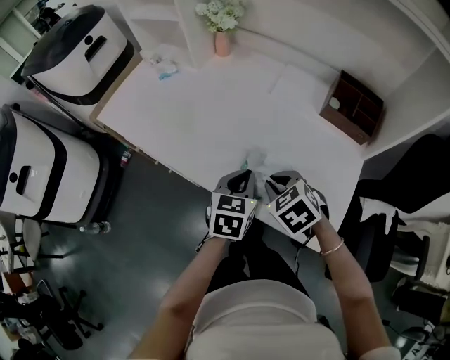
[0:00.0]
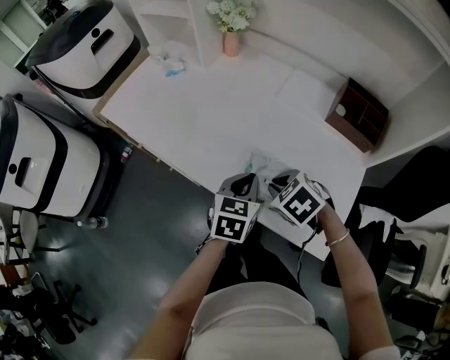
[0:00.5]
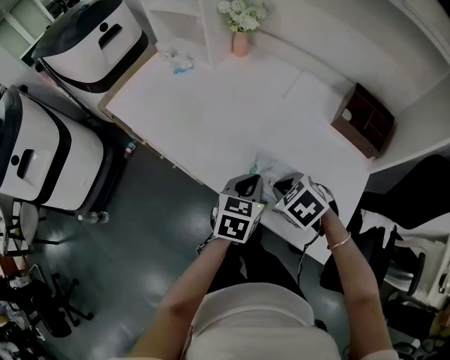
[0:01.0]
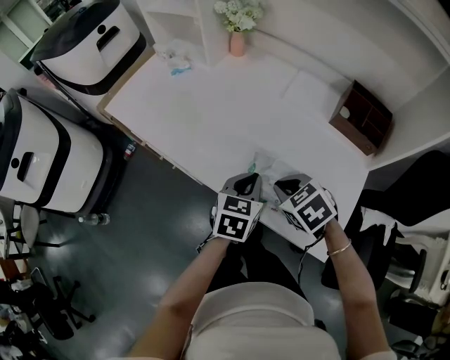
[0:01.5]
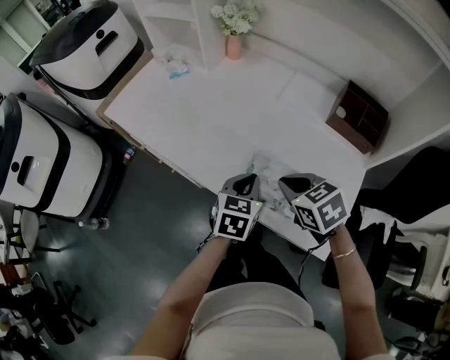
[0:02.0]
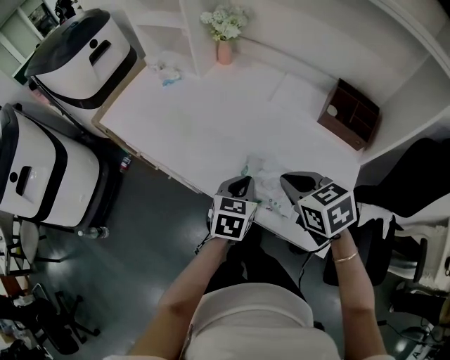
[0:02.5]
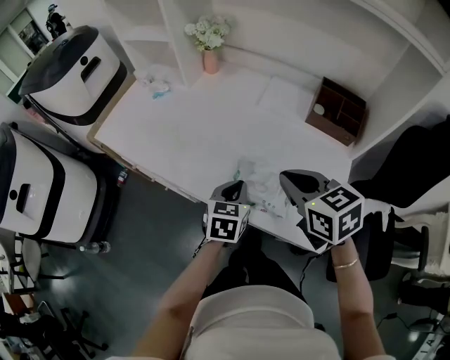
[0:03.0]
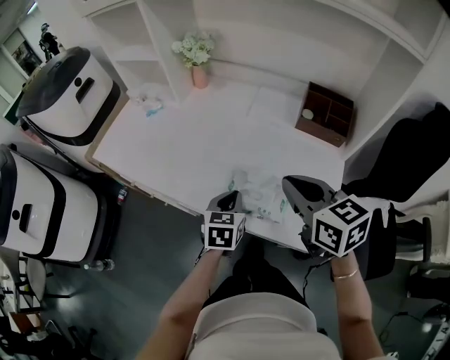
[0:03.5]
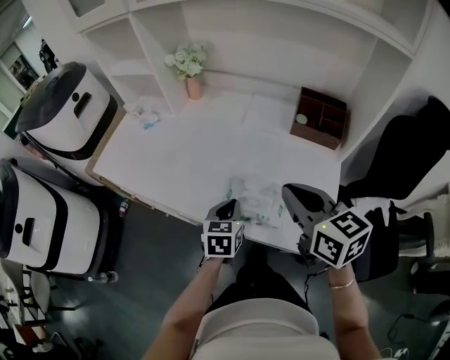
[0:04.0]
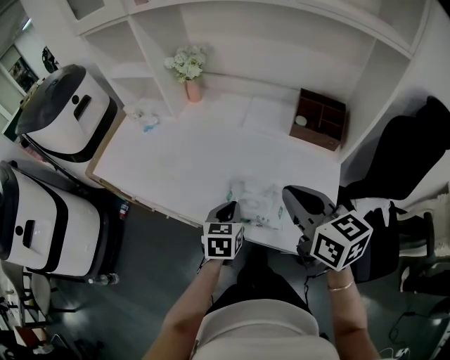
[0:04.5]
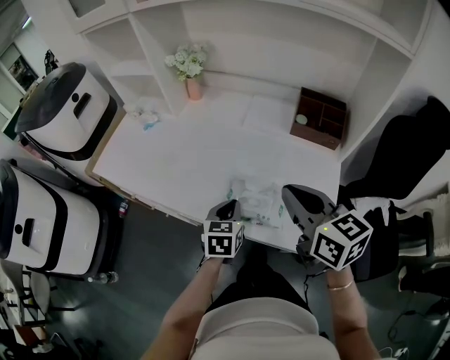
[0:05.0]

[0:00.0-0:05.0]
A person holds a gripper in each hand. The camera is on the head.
0:00.0 to 0:02.5: The right gripper goes about 5 cm upward, and turns by some 20 degrees.
0:02.5 to 0:05.0: The right gripper is displaced upward by approximately 10 cm, and swivels approximately 30 degrees.

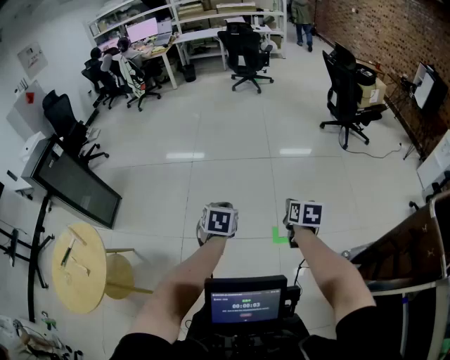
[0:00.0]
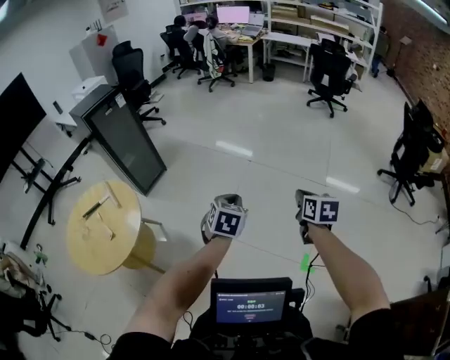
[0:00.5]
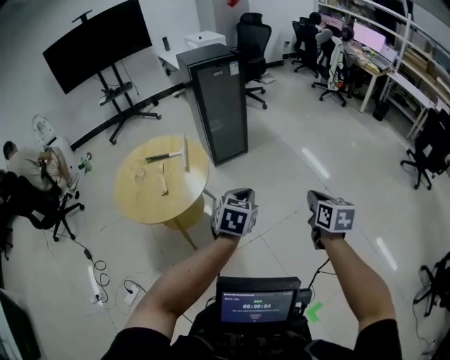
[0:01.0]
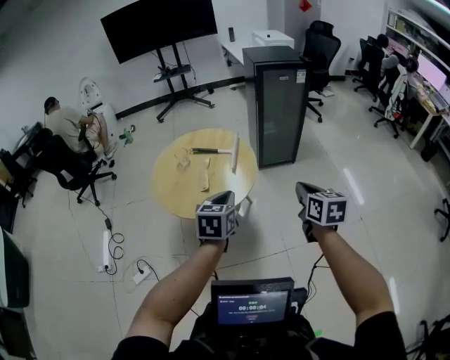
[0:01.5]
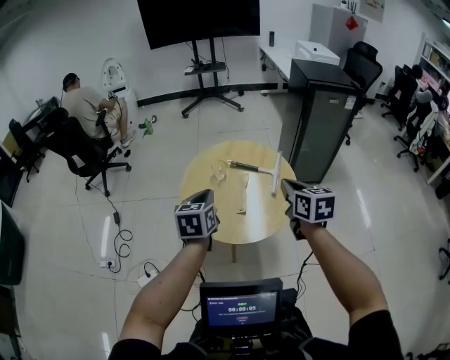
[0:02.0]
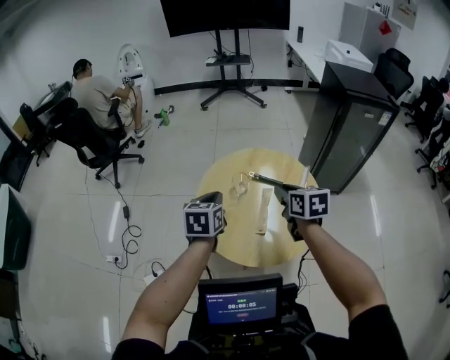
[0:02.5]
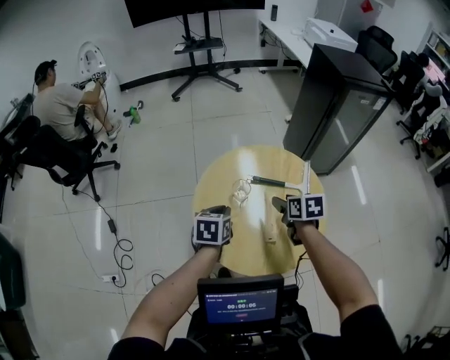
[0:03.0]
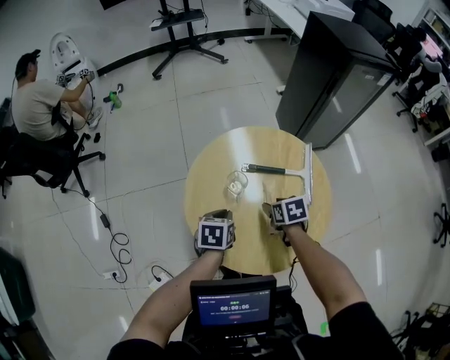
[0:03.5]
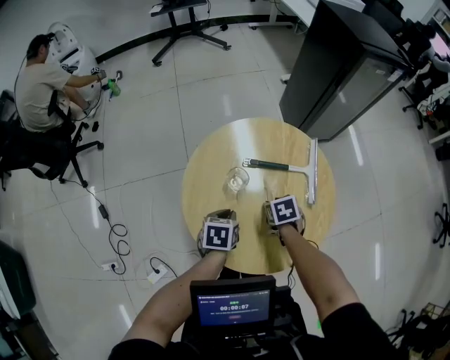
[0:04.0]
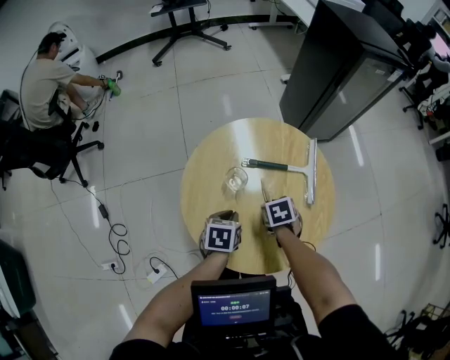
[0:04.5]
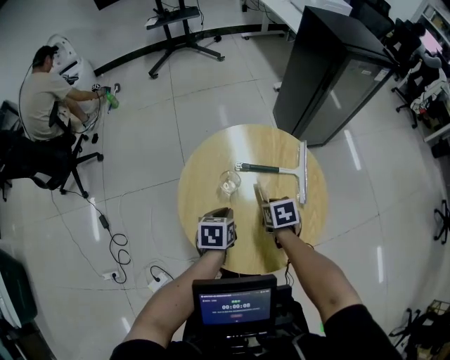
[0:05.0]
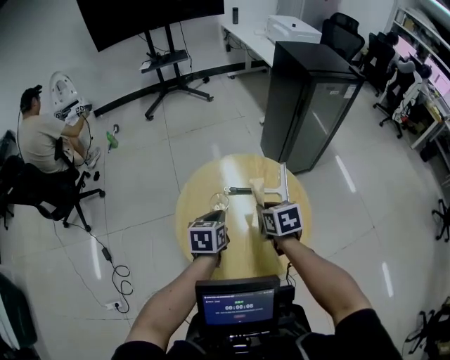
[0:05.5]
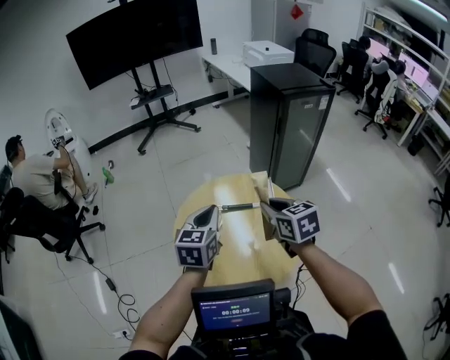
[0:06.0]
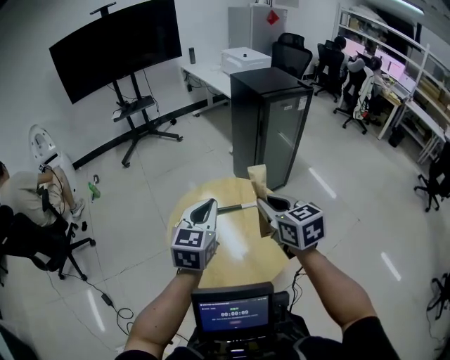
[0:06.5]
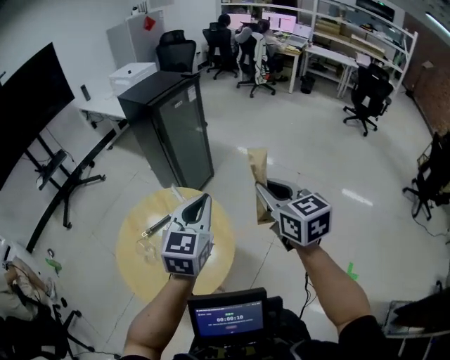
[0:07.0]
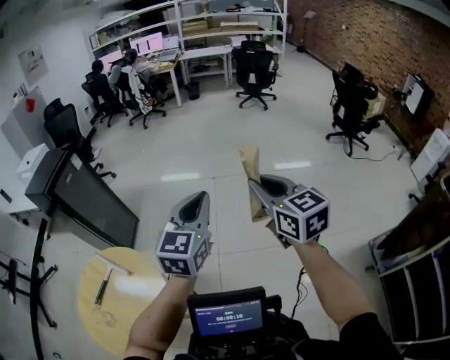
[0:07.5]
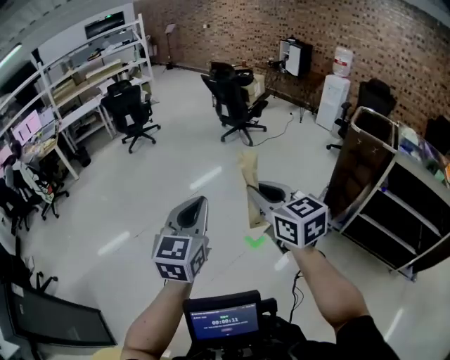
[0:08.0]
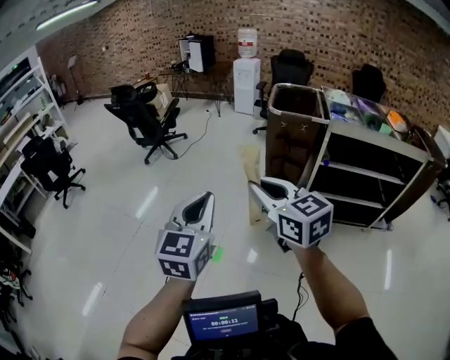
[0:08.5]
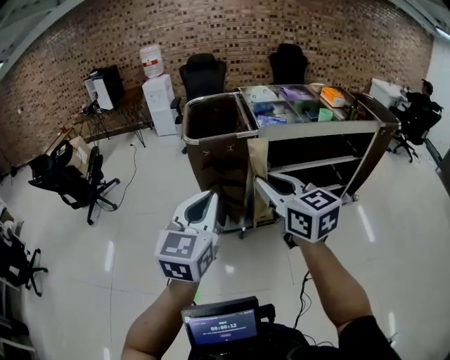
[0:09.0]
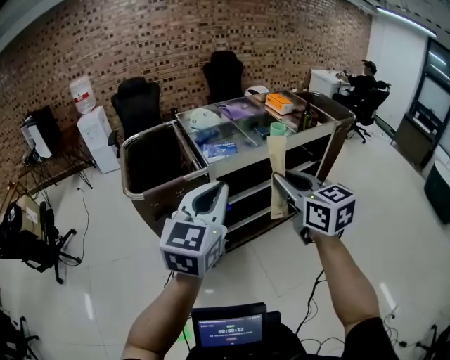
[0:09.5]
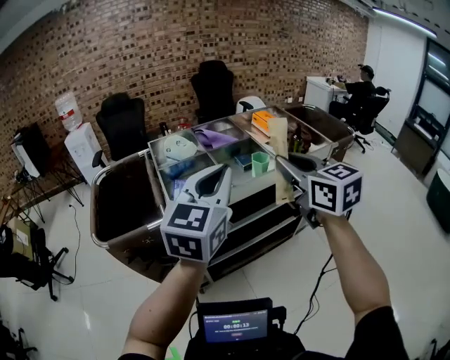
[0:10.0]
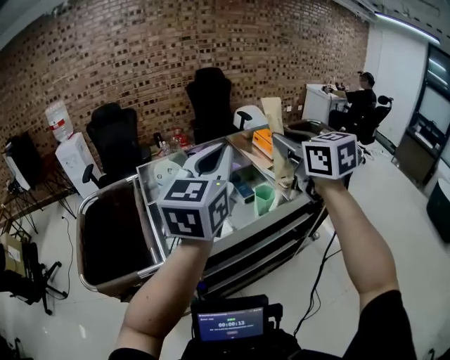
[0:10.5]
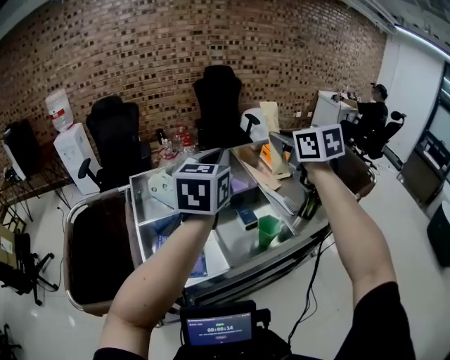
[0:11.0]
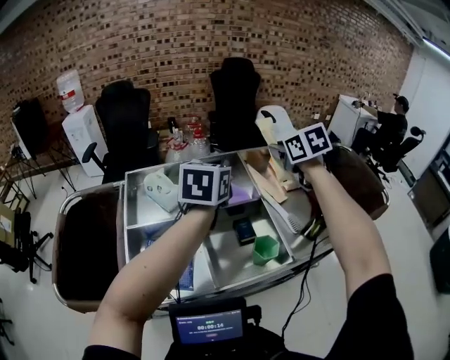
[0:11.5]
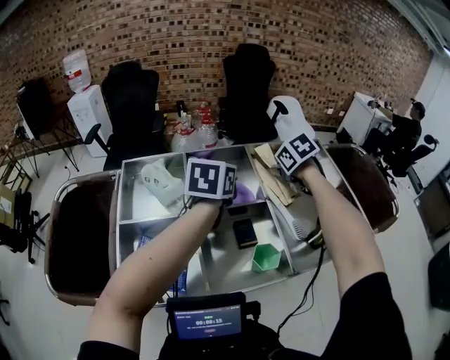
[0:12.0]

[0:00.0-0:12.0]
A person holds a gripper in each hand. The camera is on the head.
0:00.0 to 0:02.0: Both grippers are carried some 1.5 m. The right gripper turns by about 90 degrees, while the left gripper swivels approximately 90 degrees.
0:02.0 to 0:04.0: The pair of grippers is taken forward, some 60 cm. Both grippers travel together downward, approximately 40 cm. The right gripper points its fingers roughly 40 degrees further downward, and opens its fingers. The left gripper changes its angle by approximately 40 degrees.
0:04.0 to 0:06.0: The grippers both shift upward by approximately 40 cm. The right gripper points its fingers some 40 degrees further upward, and closes up; the left gripper points its fingers about 40 degrees further upward.
0:06.0 to 0:08.0: Both grippers are carried some 1.5 m. The left gripper swivels about 110 degrees. Meanwhile the right gripper changes its angle by some 100 degrees.
0:08.0 to 0:10.0: The two grippers travel together, approximately 1.5 m. The right gripper swivels about 80 degrees, while the left gripper rotates some 80 degrees.
0:10.0 to 0:12.0: The two grippers travel together, forward, some 80 cm. The right gripper tips its fingers downward by approximately 50 degrees; the left gripper changes its angle by roughly 40 degrees.

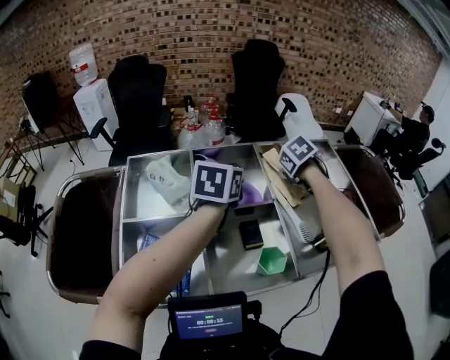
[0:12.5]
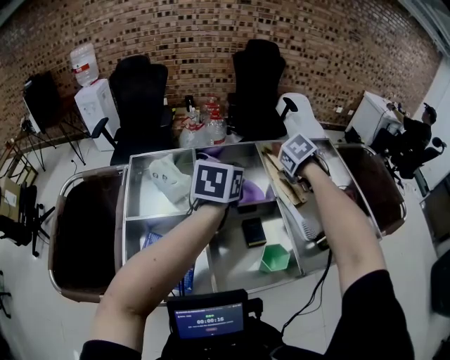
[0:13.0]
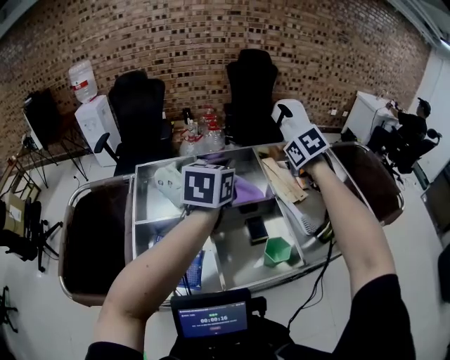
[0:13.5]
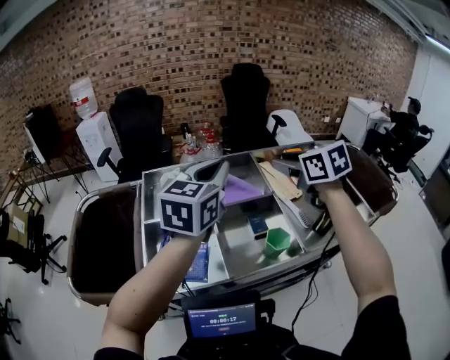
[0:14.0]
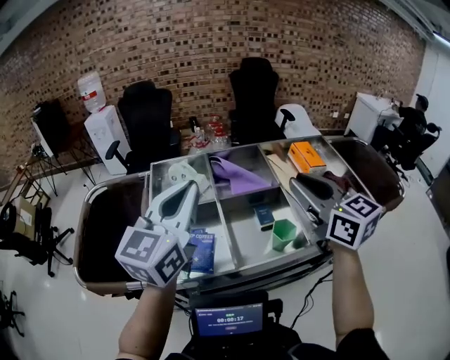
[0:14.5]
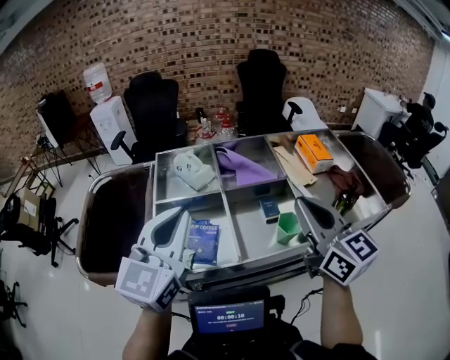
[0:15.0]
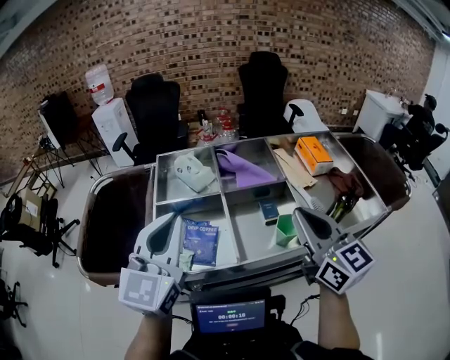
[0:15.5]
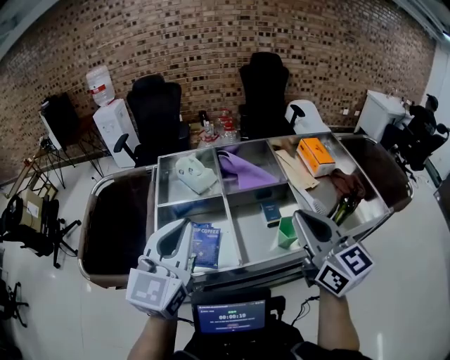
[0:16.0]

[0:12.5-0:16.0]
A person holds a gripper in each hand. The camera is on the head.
0:12.5 to 0:14.5: Both grippers travel together backward and upward, about 40 cm. The left gripper angles its fingers upward, by approximately 30 degrees. Meanwhile the right gripper tips its fingers upward by roughly 70 degrees, and opens and closes again.
0:14.5 to 0:16.0: The right gripper shifts approximately 5 cm backward, and closes. Meanwhile the left gripper heads downward and backward, covering about 10 cm.

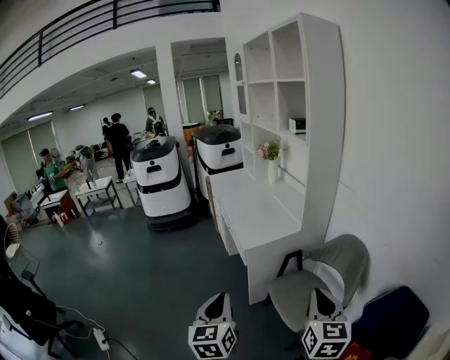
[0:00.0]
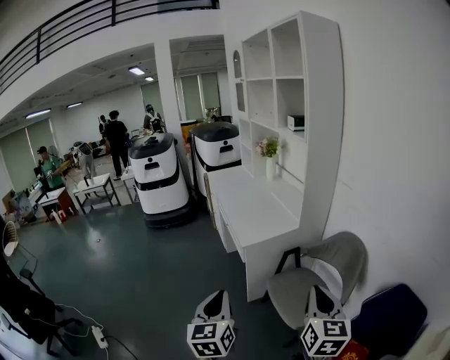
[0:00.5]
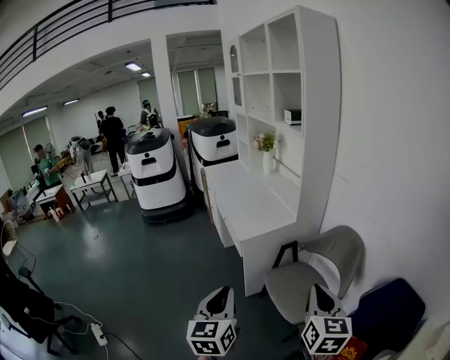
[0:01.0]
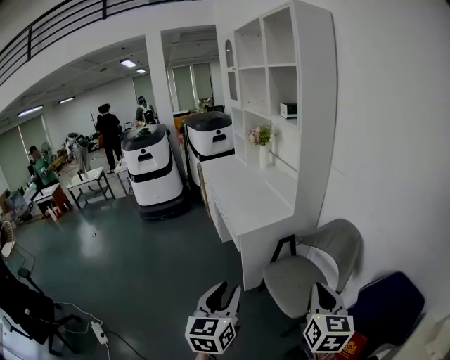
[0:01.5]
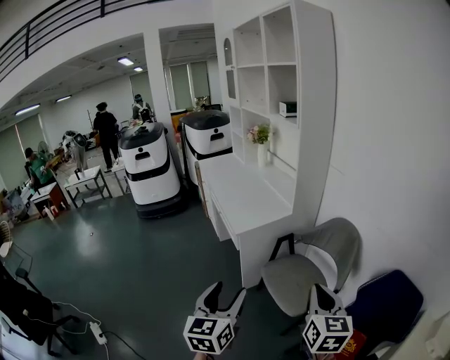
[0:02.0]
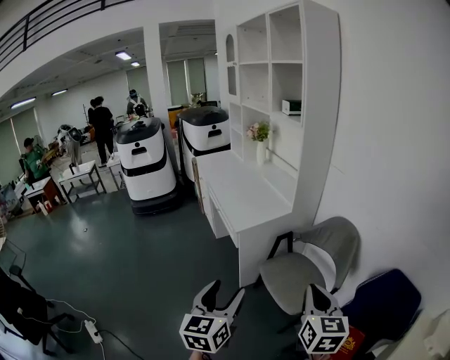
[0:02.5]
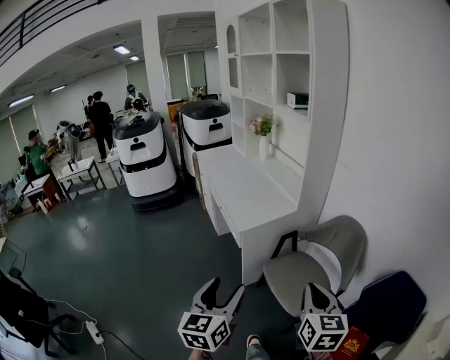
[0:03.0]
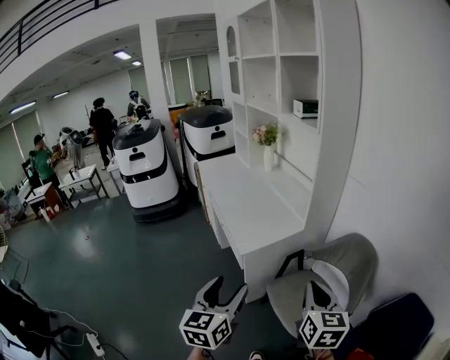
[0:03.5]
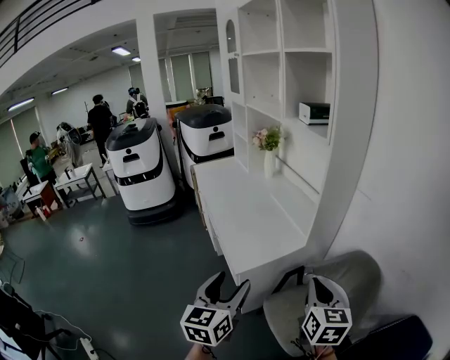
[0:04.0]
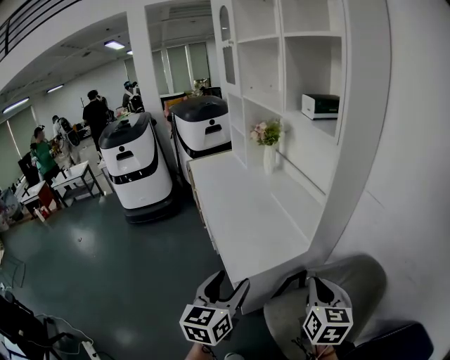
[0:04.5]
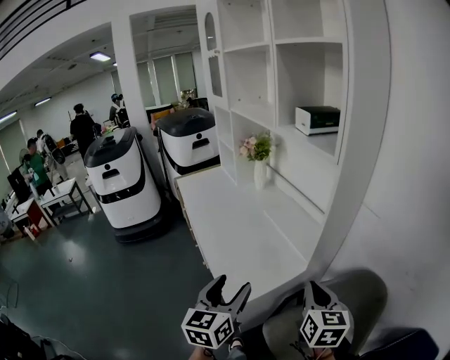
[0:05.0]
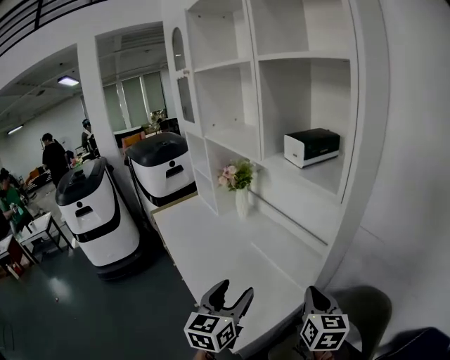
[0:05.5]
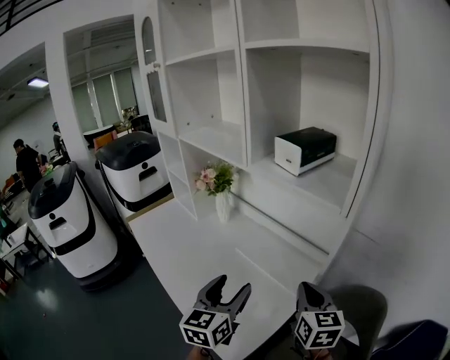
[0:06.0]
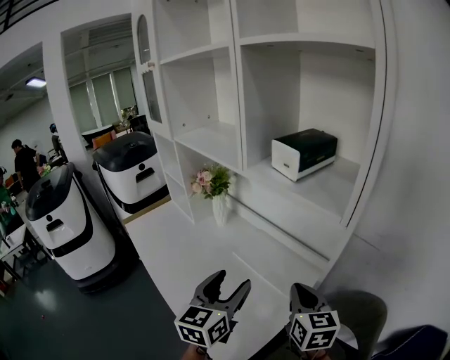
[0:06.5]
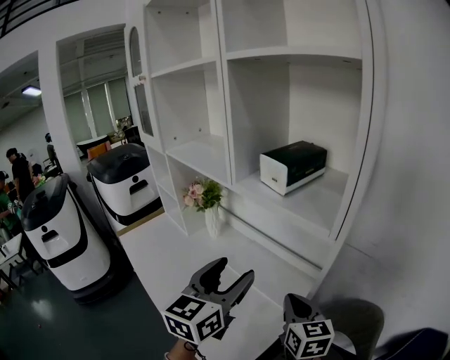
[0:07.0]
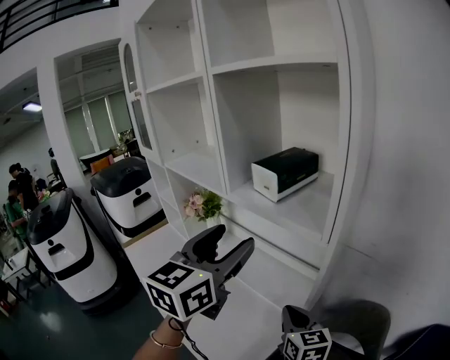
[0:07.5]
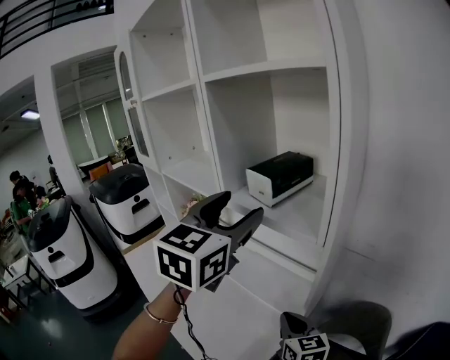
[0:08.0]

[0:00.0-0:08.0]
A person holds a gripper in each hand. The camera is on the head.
0:00.0 to 0:02.0: The left gripper opens its fingers.
0:02.0 to 0:04.0: The two grippers go roughly 30 cm forward.
0:04.0 to 0:06.0: The grippers both shift forward by roughly 35 cm. The left gripper changes its angle by about 20 degrees.
0:06.0 to 0:08.0: The left gripper shifts approximately 30 cm upward and forward, and turns by roughly 30 degrees.
